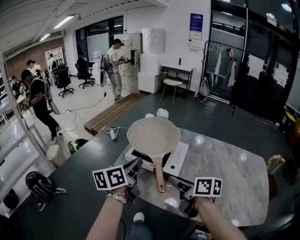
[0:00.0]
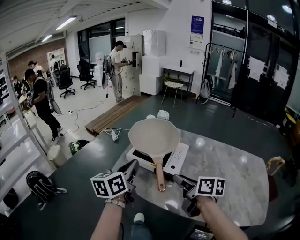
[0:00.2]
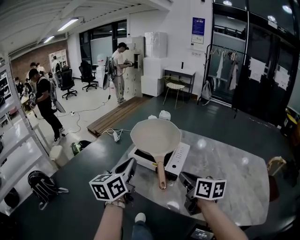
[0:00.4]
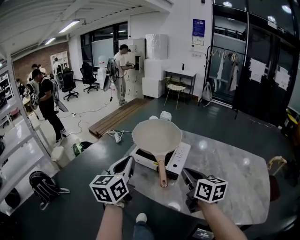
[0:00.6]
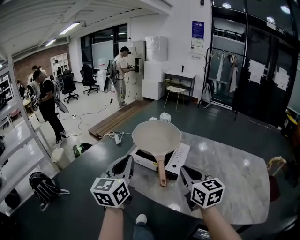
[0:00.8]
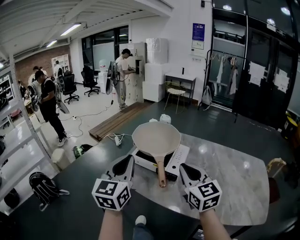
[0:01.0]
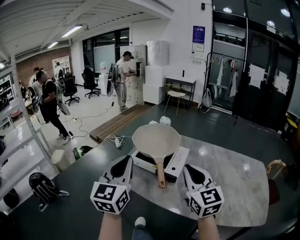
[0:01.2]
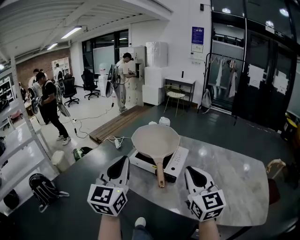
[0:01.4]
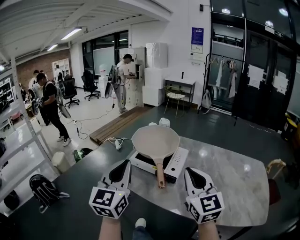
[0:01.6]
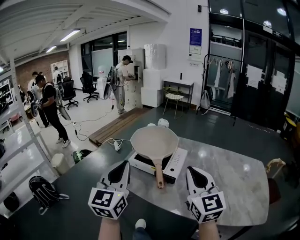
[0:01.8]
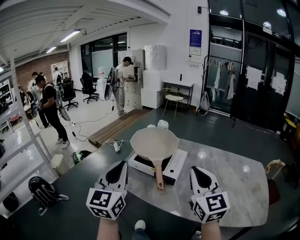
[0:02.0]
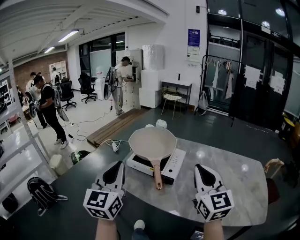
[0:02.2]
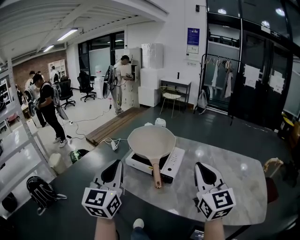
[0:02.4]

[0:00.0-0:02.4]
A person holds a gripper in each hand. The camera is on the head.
0:00.0 to 0:01.2: The left gripper shifts some 15 cm upward and backward, and rolls clockwise, seen from behind, by approximately 40 degrees; the right gripper shifts some 10 cm upward, twists approximately 60 degrees counterclockwise, seen from behind, and closes.
0:01.2 to 0:02.4: The right gripper changes place by some 5 cm.

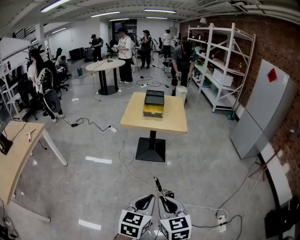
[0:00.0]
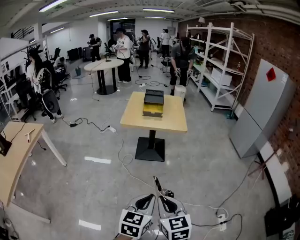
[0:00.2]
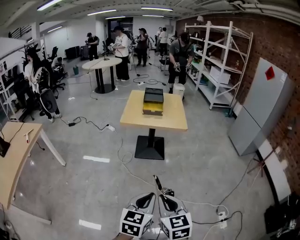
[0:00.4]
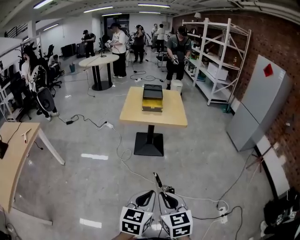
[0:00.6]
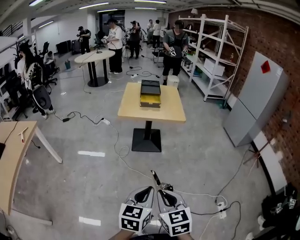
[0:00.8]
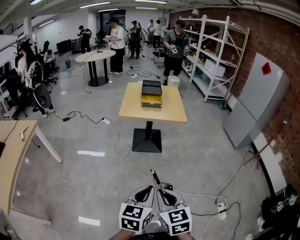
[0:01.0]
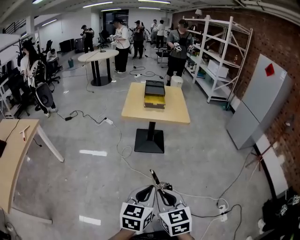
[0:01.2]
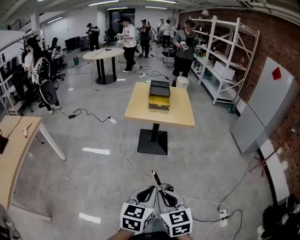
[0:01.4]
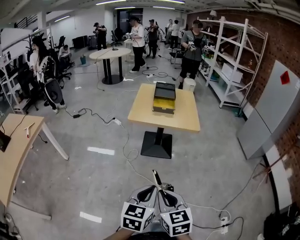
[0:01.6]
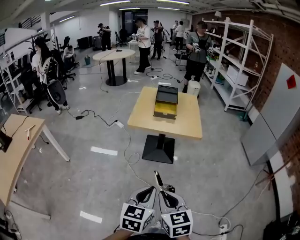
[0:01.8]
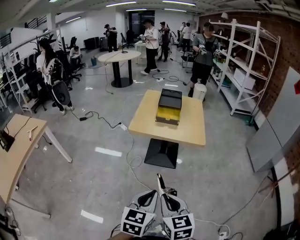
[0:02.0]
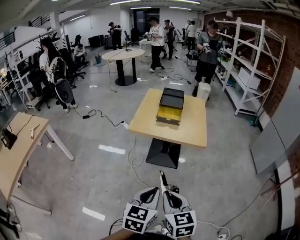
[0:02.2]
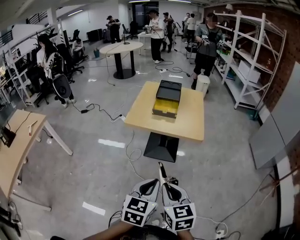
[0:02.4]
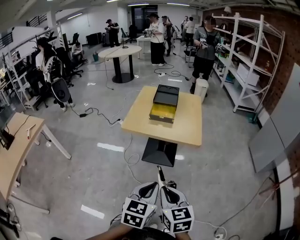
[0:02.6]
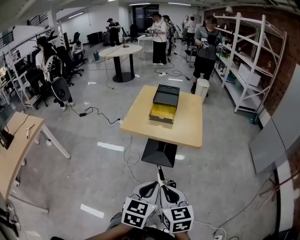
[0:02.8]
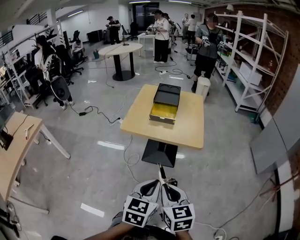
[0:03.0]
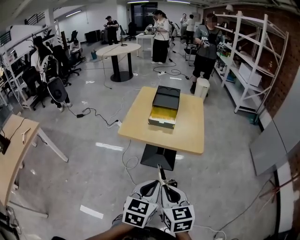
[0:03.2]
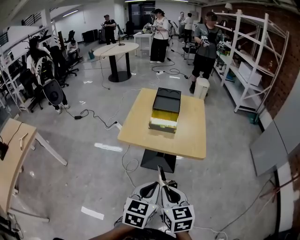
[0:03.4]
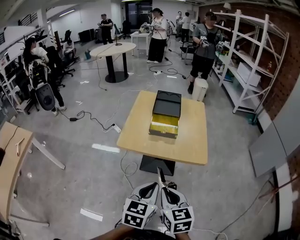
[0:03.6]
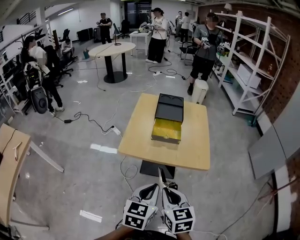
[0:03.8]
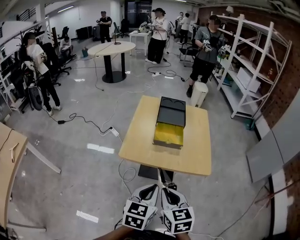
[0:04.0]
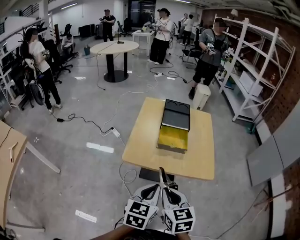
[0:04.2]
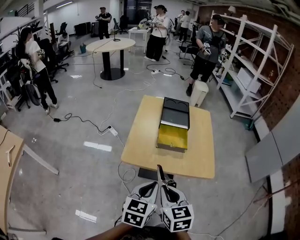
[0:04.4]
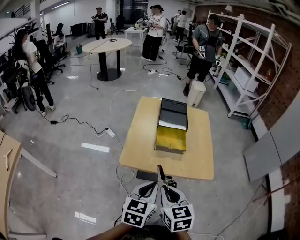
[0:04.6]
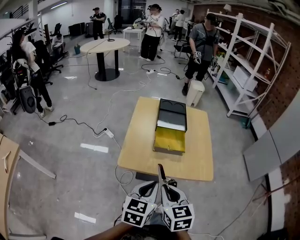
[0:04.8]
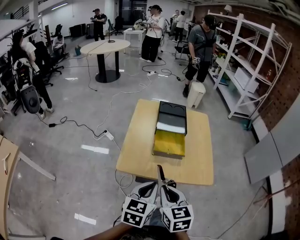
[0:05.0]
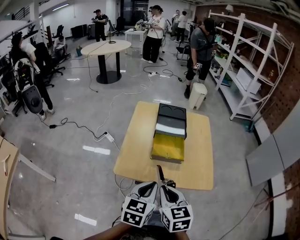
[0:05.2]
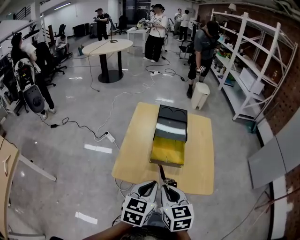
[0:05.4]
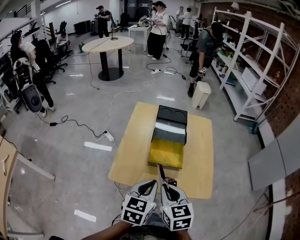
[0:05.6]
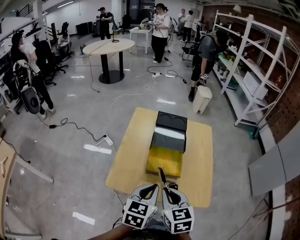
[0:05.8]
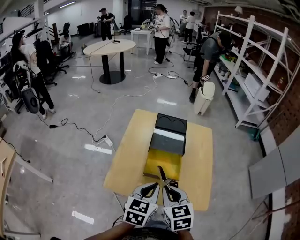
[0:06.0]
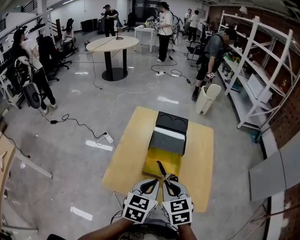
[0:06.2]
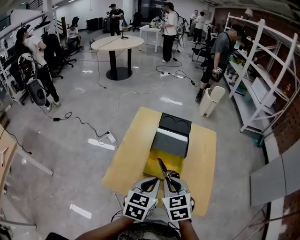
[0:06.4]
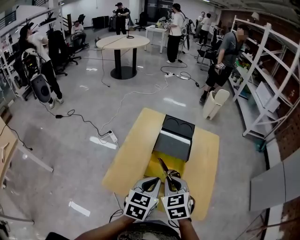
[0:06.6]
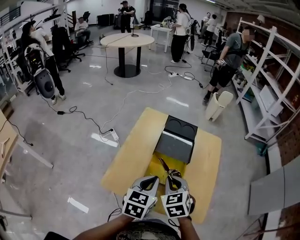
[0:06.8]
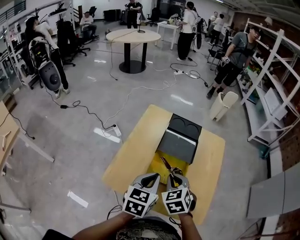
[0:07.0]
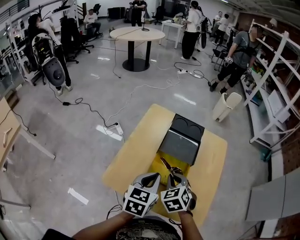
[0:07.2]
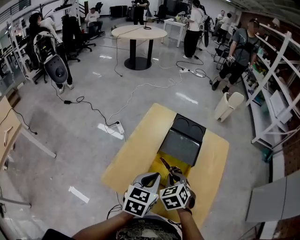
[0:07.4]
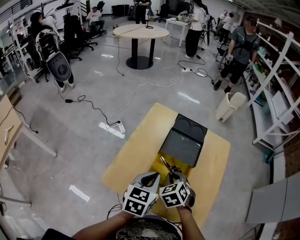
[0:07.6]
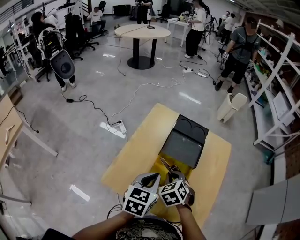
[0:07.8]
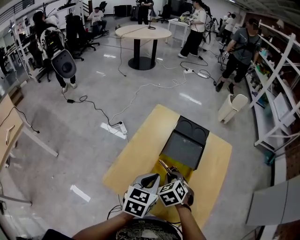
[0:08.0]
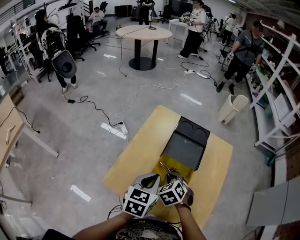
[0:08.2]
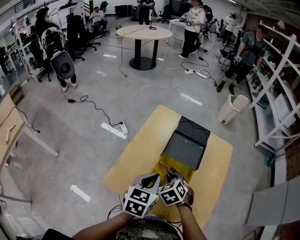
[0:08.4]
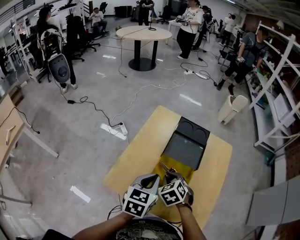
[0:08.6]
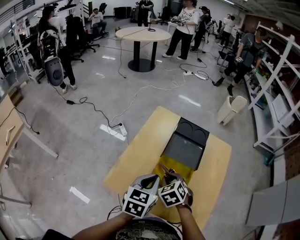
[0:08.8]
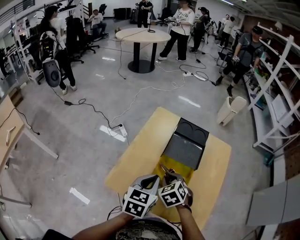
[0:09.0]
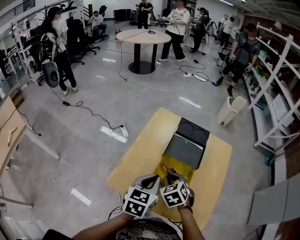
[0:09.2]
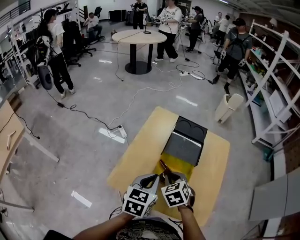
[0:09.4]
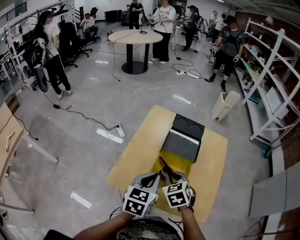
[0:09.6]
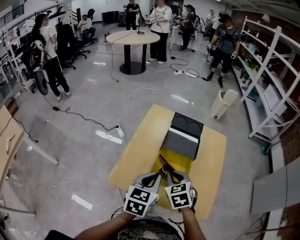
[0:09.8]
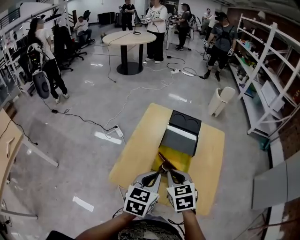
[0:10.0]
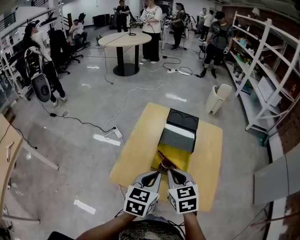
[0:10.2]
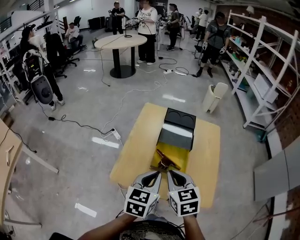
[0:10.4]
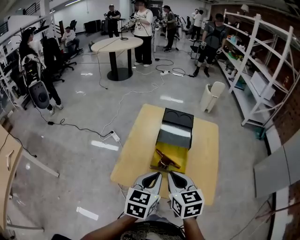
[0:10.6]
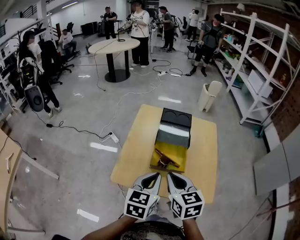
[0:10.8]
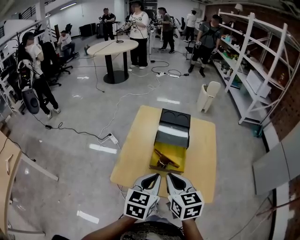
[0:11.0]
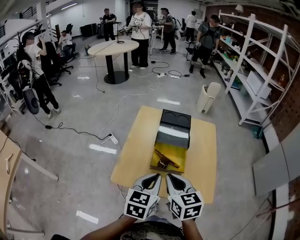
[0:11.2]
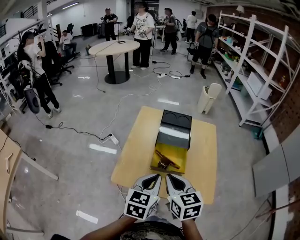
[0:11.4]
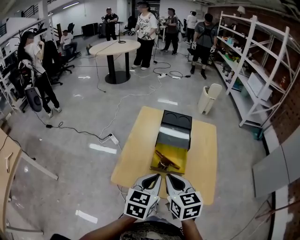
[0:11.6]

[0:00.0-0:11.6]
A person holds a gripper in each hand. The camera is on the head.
0:00.0 to 0:01.4: Both grippers travel together to the left and forward, some 20 cm.
0:01.4 to 0:02.8: Both grippers are carried forward and to the right, roughly 50 cm.
0:02.8 to 0:04.4: The pair of grippers is taken forward and to the left, approximately 60 cm.
0:04.4 to 0:05.8: Both grippers move forward, some 40 cm.
0:05.8 to 0:07.2: The right gripper is displaced forward and downward by roughly 30 cm, and rotates approximately 30 degrees. The left gripper shifts roughly 20 cm forward.
0:07.2 to 0:08.8: The right gripper shifts by roughly 5 cm.
0:08.8 to 0:10.2: The left gripper moves backward, about 20 cm. The right gripper is displaced backward and upward by roughly 25 cm, and changes its angle by roughly 30 degrees.
0:10.2 to 0:11.6: The two grippers go about 10 cm backward.

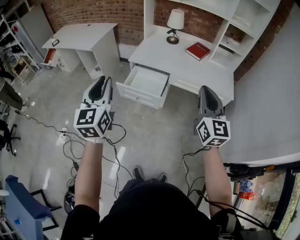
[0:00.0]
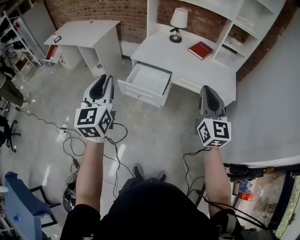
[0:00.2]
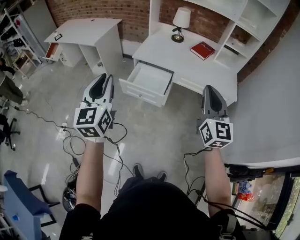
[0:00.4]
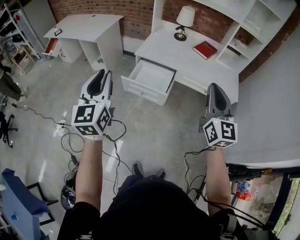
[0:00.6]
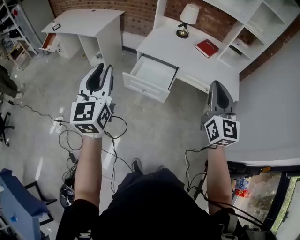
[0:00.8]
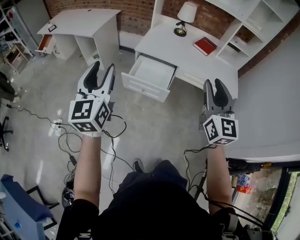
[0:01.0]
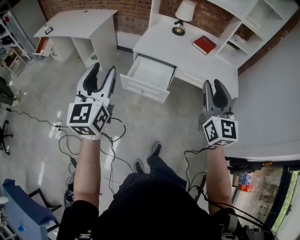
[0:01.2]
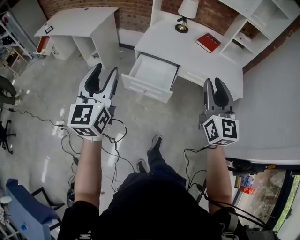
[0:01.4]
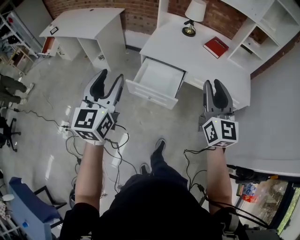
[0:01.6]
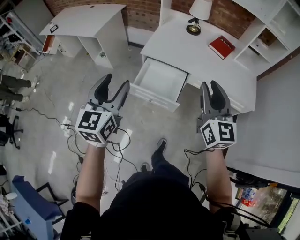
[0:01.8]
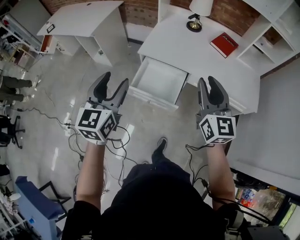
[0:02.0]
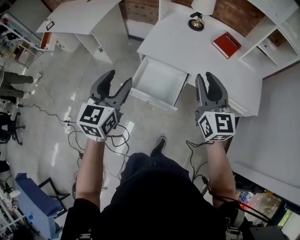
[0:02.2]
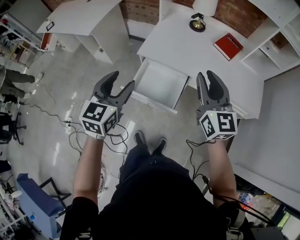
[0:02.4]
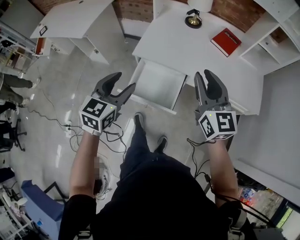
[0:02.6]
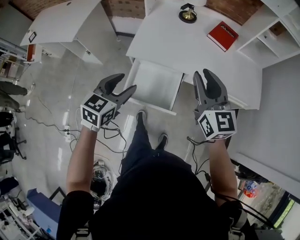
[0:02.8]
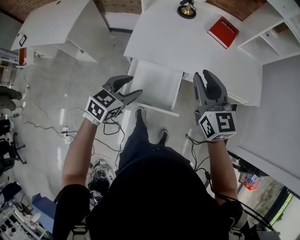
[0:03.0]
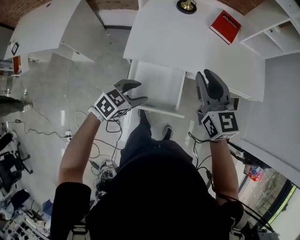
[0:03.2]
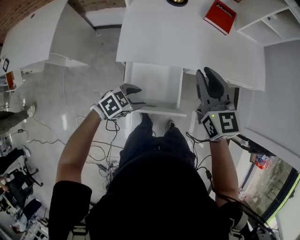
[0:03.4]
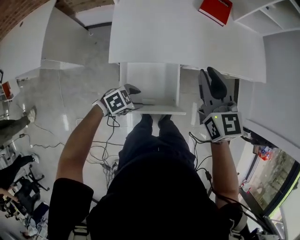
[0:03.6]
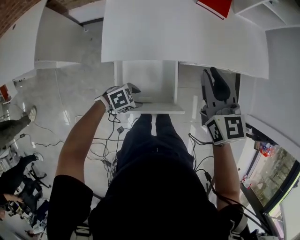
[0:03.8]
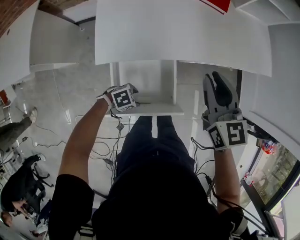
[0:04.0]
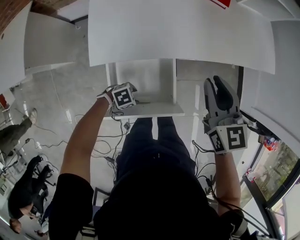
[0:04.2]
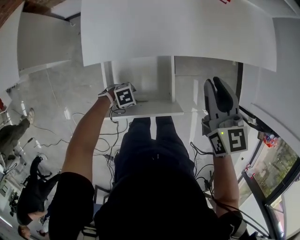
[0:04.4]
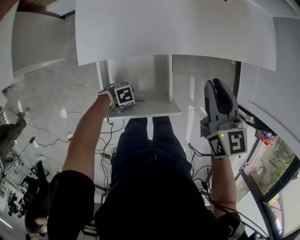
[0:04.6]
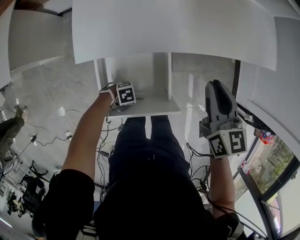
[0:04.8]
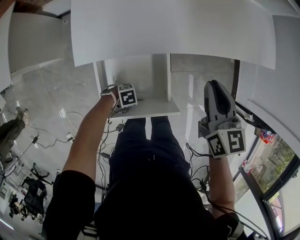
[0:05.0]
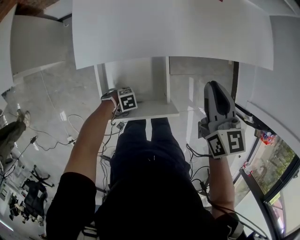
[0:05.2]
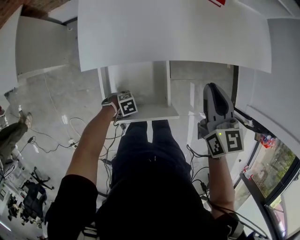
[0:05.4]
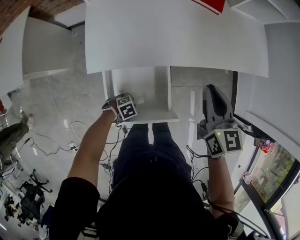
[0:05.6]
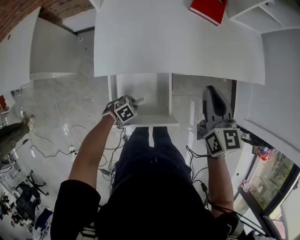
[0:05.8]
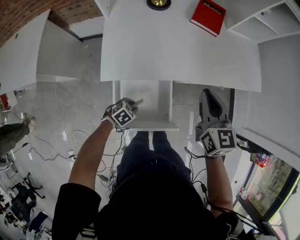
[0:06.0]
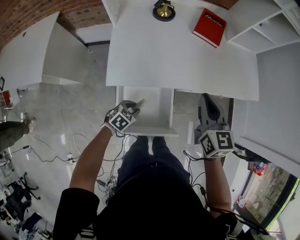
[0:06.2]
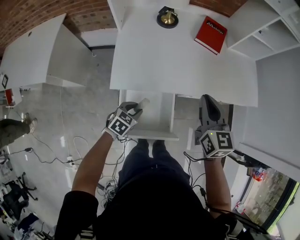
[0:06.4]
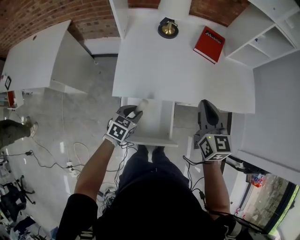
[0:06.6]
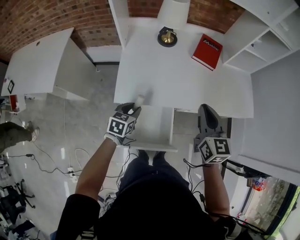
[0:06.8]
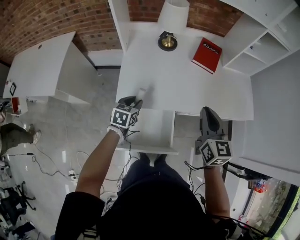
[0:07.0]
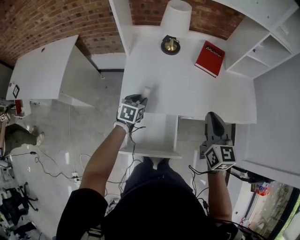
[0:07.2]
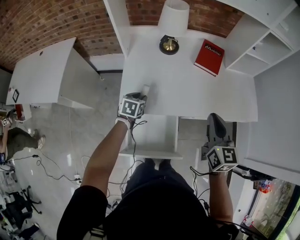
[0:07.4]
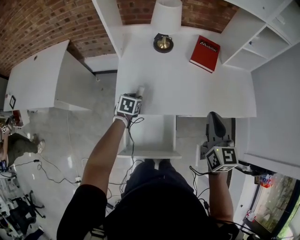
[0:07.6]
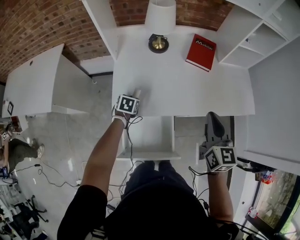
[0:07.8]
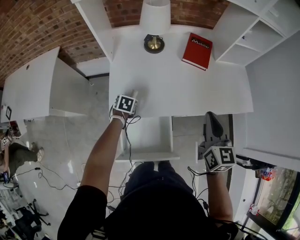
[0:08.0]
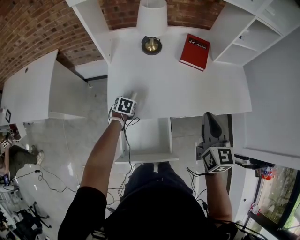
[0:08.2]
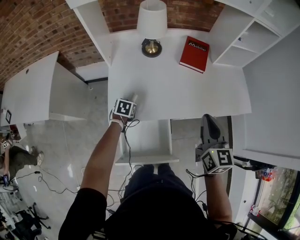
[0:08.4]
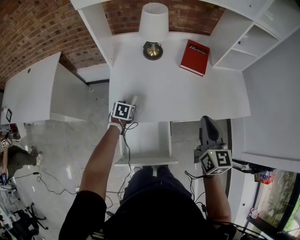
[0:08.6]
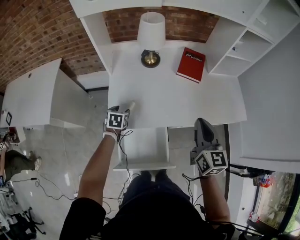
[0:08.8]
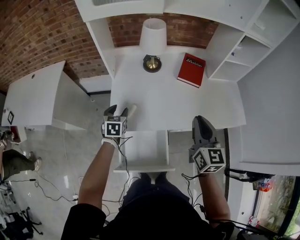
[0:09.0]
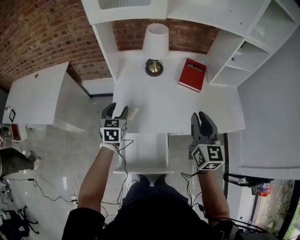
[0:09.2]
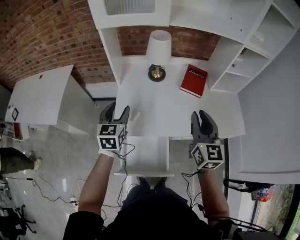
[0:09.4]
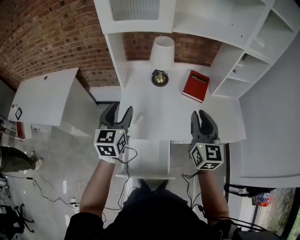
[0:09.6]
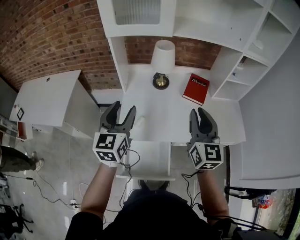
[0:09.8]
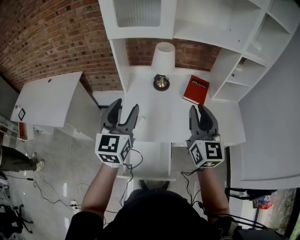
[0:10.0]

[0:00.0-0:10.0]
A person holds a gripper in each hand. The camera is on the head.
0:00.0 to 0:01.4: The right gripper travels to the left and forward by about 10 cm, and opens up, while the left gripper goes approximately 10 cm forward and to the left, and opens up.
0:01.4 to 0:02.8: The left gripper moves forward and downward, roughly 35 cm, and angles its fingers downward, by approximately 30 degrees; the right gripper is displaced forward by roughly 30 cm.
0:02.8 to 0:04.2: The right gripper travels downward by some 15 cm, and swivels roughly 30 degrees. Meanwhile the left gripper shifts some 40 cm downward, and turns by approximately 80 degrees.
0:04.2 to 0:05.8: The left gripper travels downward and back again, some 10 cm each way, and closes up.
0:05.8 to 0:07.2: The left gripper is displaced upward by some 25 cm, and turns by roughly 50 degrees. The right gripper is displaced upward by some 10 cm.
0:07.2 to 0:08.6: The left gripper travels downward by roughly 5 cm, and opens.
0:08.6 to 0:10.0: The right gripper heads upward, covering some 15 cm, and turns by roughly 20 degrees. Meanwhile the left gripper travels upward by approximately 40 cm, and points its fingers roughly 60 degrees further upward.
